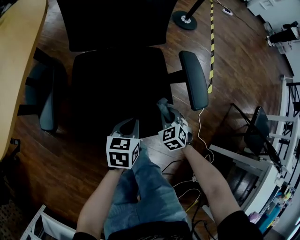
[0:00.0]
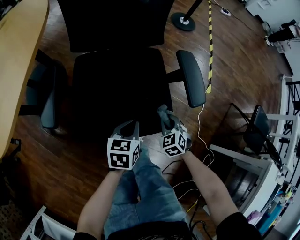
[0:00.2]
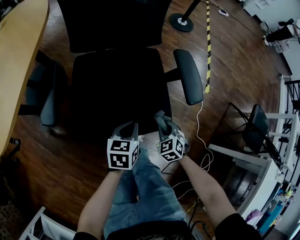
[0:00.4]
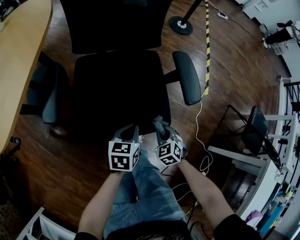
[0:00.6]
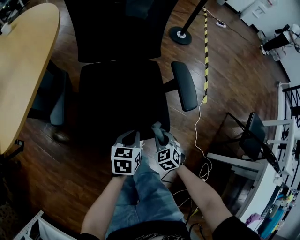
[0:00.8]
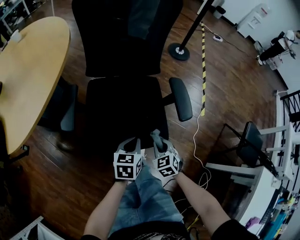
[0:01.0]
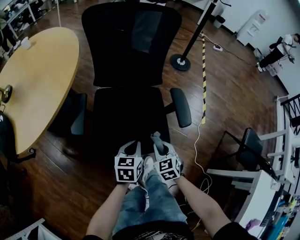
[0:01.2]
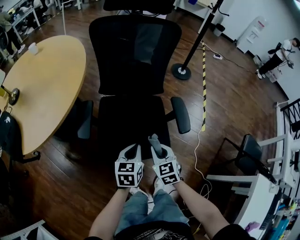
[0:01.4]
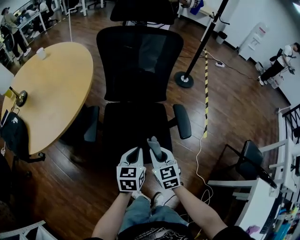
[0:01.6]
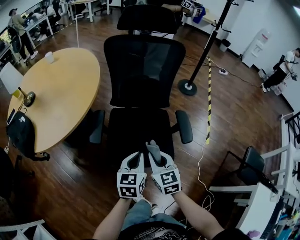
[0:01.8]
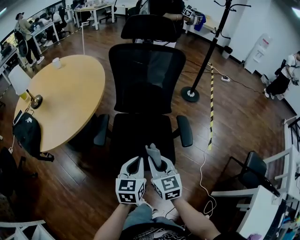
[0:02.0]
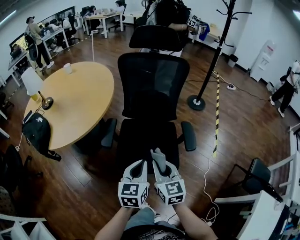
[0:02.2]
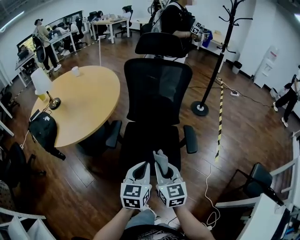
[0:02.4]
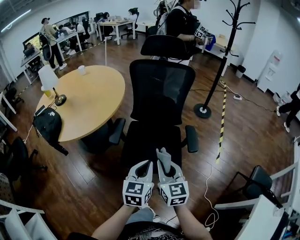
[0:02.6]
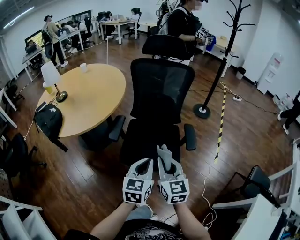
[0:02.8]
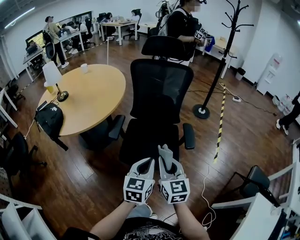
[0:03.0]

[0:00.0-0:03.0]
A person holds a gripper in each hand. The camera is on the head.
0:00.0 to 0:01.6: Both grippers move upward, some 25 cm. The right gripper swivels approximately 30 degrees.
0:01.6 to 0:03.0: The right gripper heads upward and backward, covering roughly 25 cm, and changes its angle by some 20 degrees. The left gripper is displaced backward and upward by roughly 20 cm.

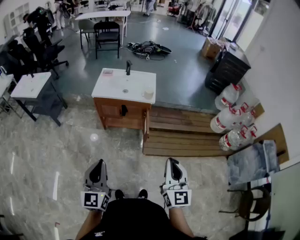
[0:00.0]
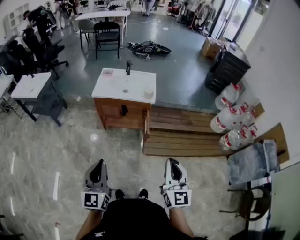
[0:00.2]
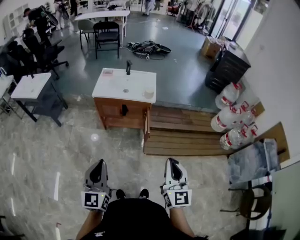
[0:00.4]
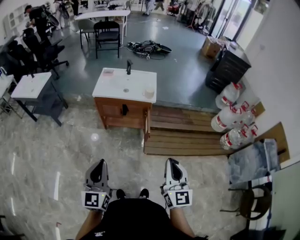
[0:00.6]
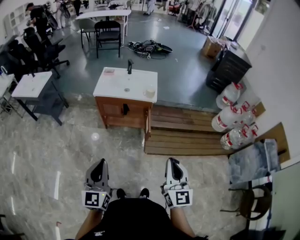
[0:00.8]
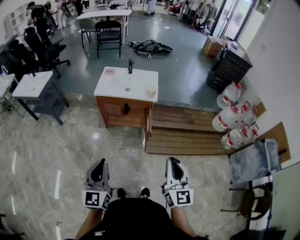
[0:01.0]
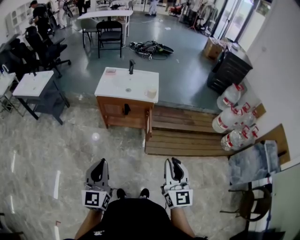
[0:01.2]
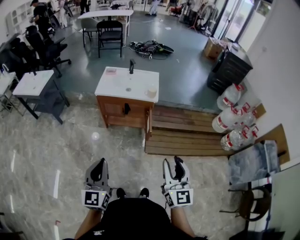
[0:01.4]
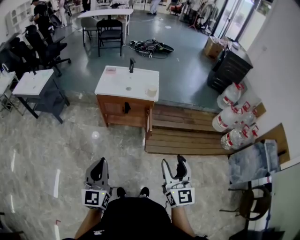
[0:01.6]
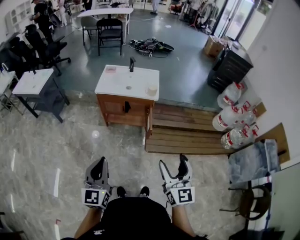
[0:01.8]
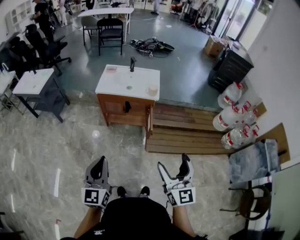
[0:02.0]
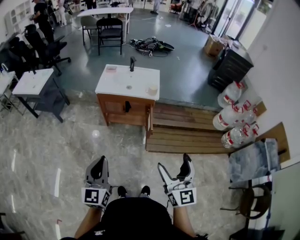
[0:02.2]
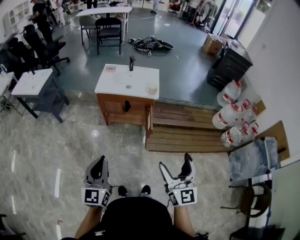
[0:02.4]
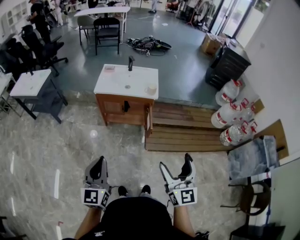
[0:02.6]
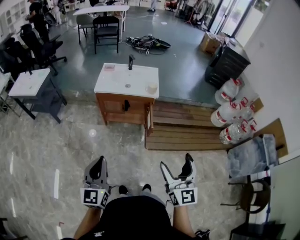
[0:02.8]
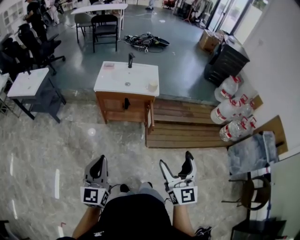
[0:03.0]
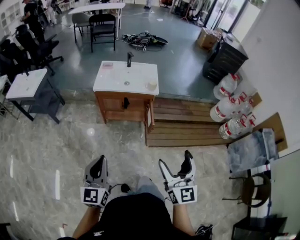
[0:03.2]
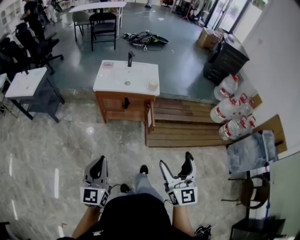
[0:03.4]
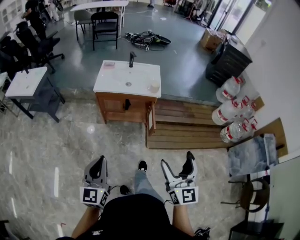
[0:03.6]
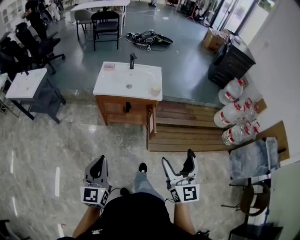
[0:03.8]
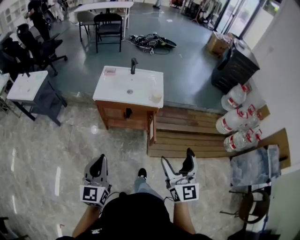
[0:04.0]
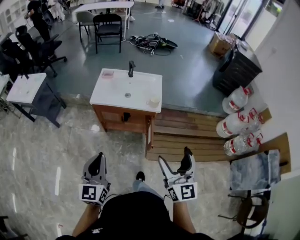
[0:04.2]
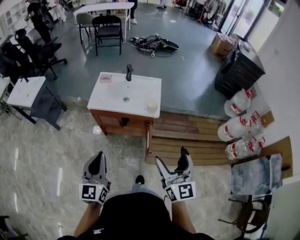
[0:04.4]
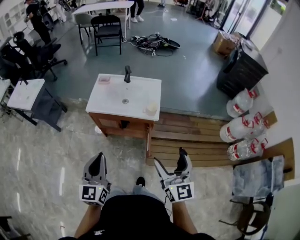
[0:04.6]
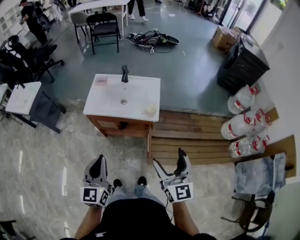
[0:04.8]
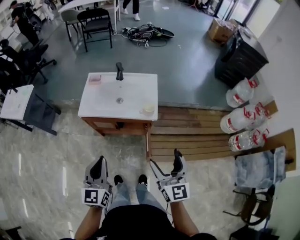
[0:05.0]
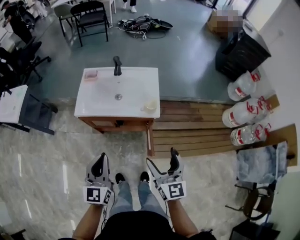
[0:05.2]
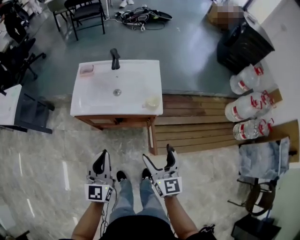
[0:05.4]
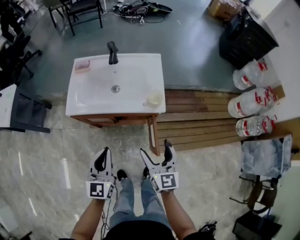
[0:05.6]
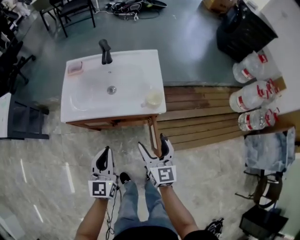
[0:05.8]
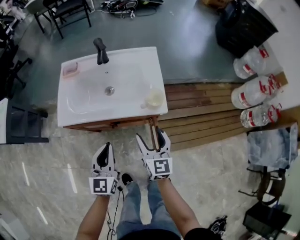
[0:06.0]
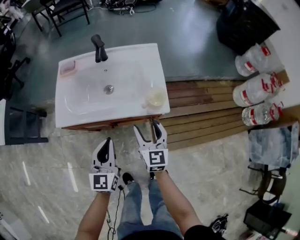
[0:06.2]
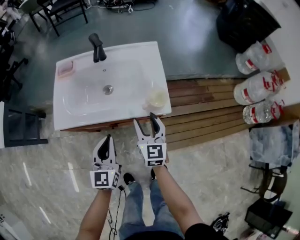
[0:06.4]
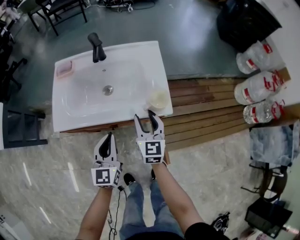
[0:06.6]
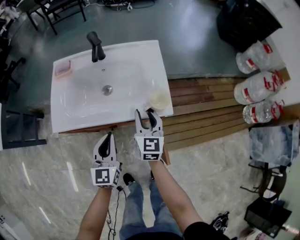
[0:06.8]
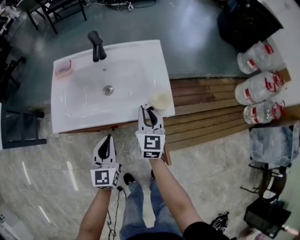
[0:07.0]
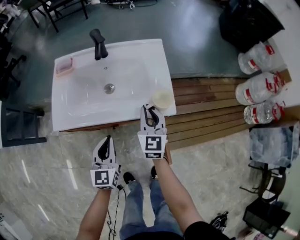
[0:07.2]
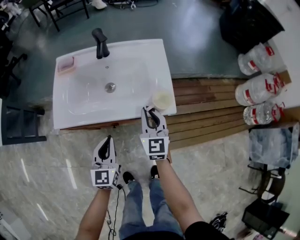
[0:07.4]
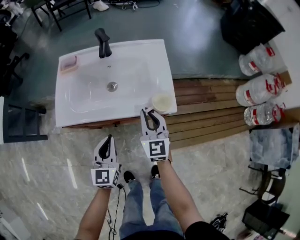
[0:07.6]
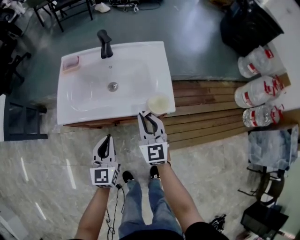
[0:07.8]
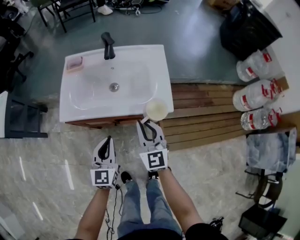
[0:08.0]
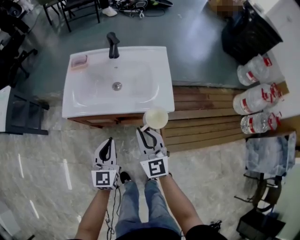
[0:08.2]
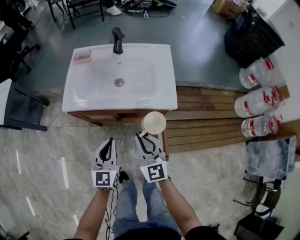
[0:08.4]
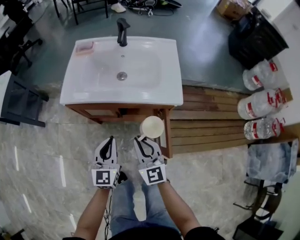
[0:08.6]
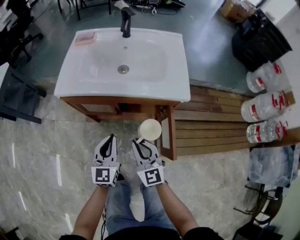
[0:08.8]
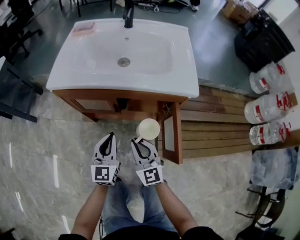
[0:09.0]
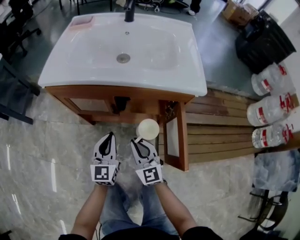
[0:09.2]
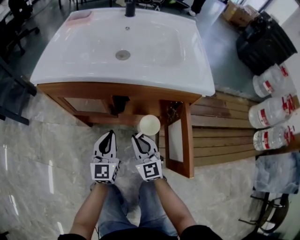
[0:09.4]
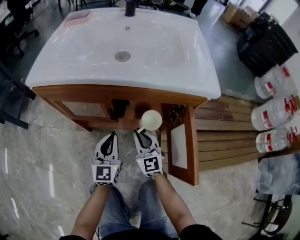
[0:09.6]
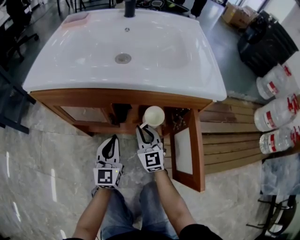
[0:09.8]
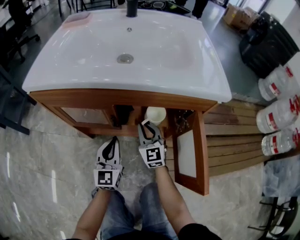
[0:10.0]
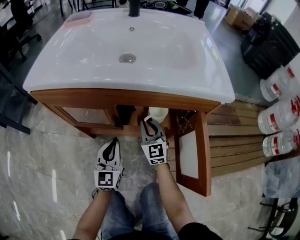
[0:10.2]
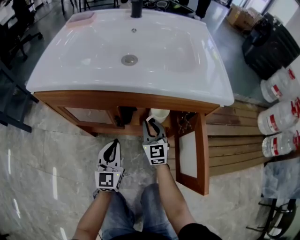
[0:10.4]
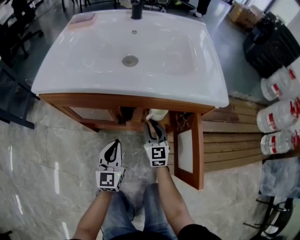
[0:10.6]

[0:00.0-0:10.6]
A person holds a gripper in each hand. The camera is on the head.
0:00.0 to 0:01.6: The right gripper opens its fingers.
0:01.6 to 0:03.0: The right gripper opens up.
0:03.0 to 0:04.6: The grippers both shift forward by approximately 25 cm.
0:04.6 to 0:06.0: The grippers both shift downward and forward by roughly 35 cm.
0:06.0 to 0:07.6: The left gripper moves downward, roughly 5 cm. Meanwhile the right gripper is displaced forward by about 10 cm, and closes its fingers.
0:07.6 to 0:09.0: The left gripper goes about 20 cm downward and backward, while the right gripper travels downward, backward and to the left by approximately 25 cm, and turns by some 20 degrees.
0:09.0 to 0:10.6: The left gripper travels downward and forward by roughly 15 cm. The right gripper goes some 25 cm forward and downward.

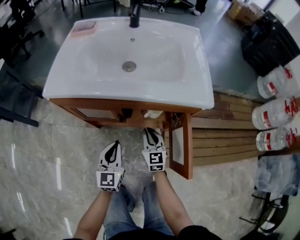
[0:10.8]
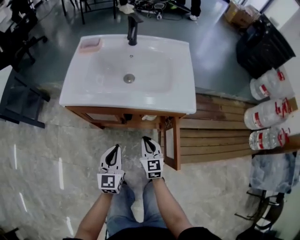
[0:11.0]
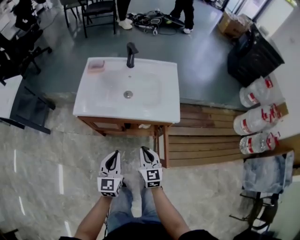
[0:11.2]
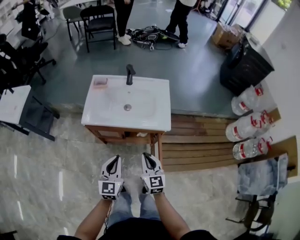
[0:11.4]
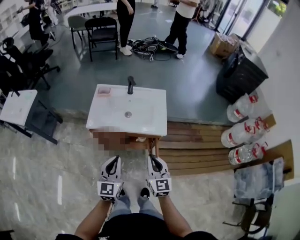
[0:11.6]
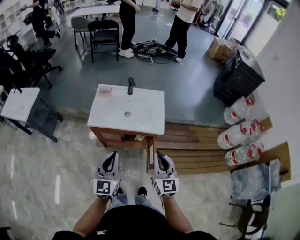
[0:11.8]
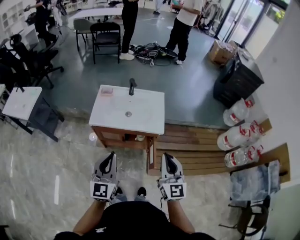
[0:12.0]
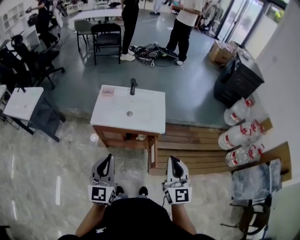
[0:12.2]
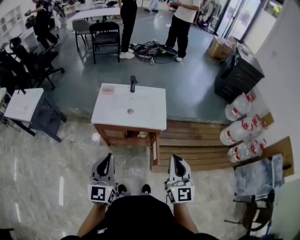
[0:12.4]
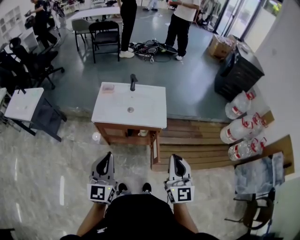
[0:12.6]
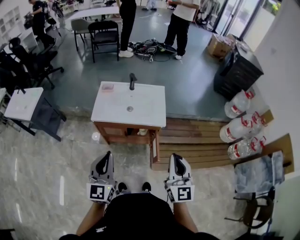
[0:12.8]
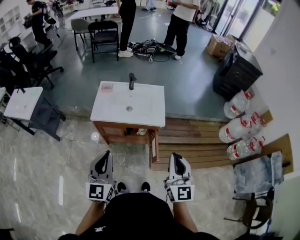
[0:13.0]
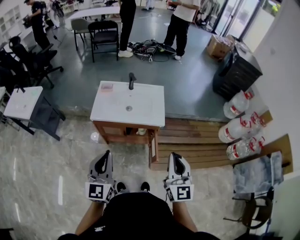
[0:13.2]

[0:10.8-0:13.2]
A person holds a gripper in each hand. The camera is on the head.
0:10.8 to 0:12.0: Both grippers travel together upward, about 60 cm.
0:12.0 to 0:13.2: The right gripper is displaced backward by about 5 cm; the left gripper ends up roughly 5 cm from where it was.

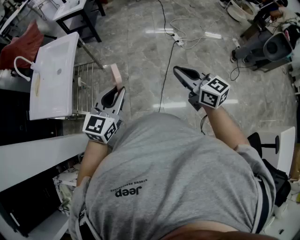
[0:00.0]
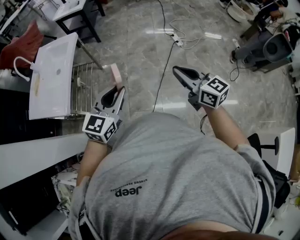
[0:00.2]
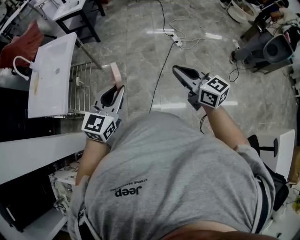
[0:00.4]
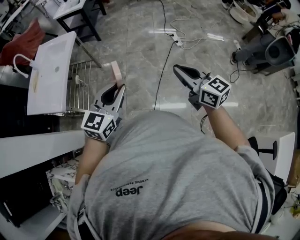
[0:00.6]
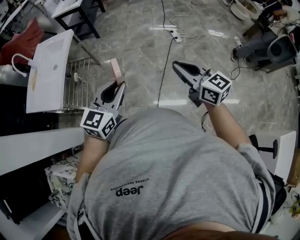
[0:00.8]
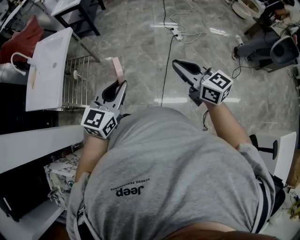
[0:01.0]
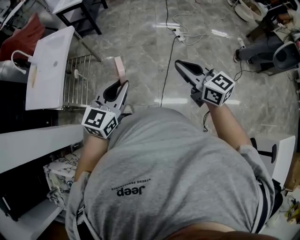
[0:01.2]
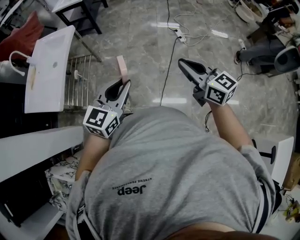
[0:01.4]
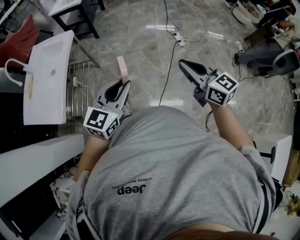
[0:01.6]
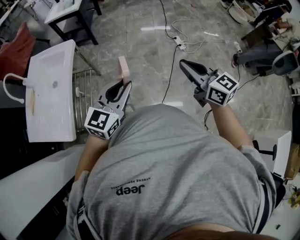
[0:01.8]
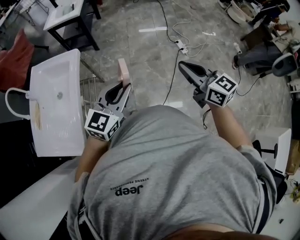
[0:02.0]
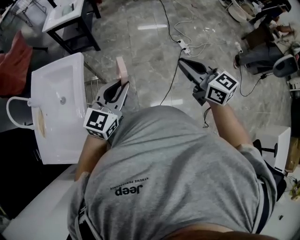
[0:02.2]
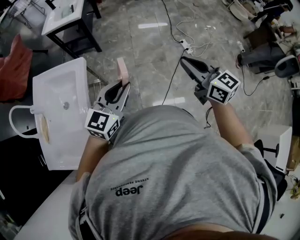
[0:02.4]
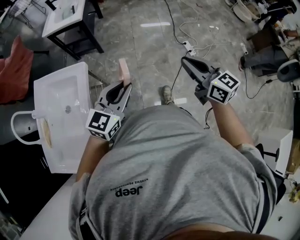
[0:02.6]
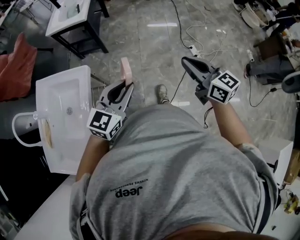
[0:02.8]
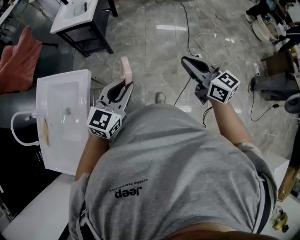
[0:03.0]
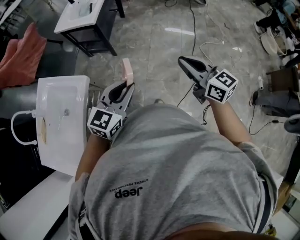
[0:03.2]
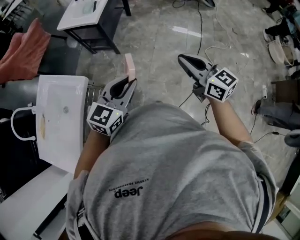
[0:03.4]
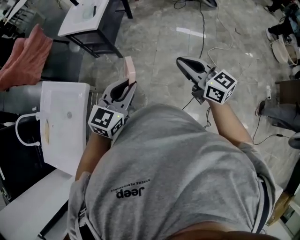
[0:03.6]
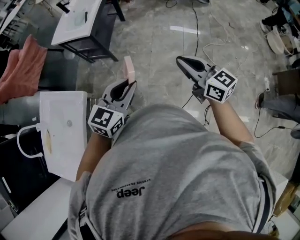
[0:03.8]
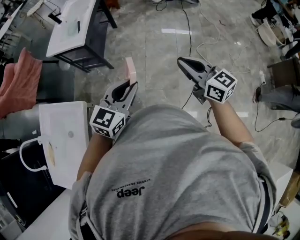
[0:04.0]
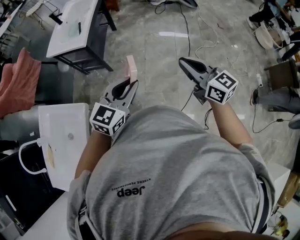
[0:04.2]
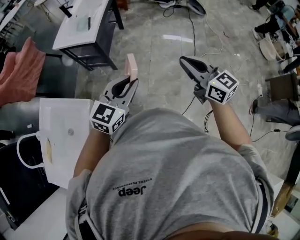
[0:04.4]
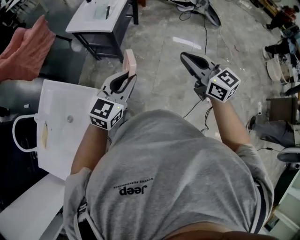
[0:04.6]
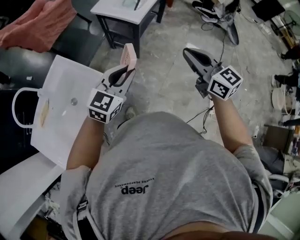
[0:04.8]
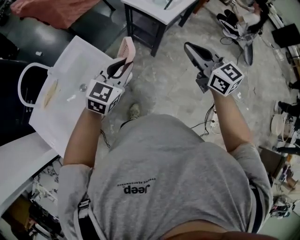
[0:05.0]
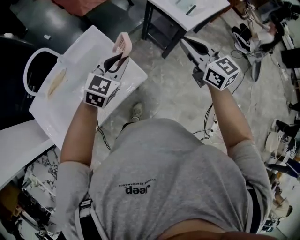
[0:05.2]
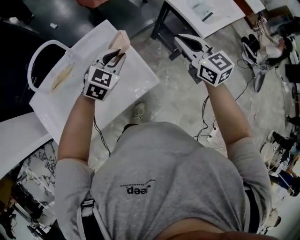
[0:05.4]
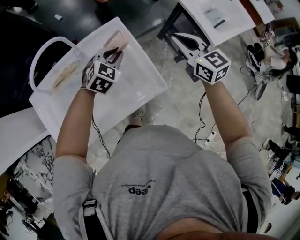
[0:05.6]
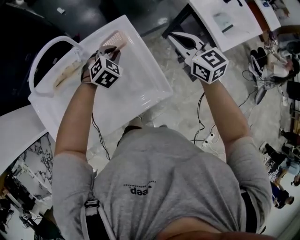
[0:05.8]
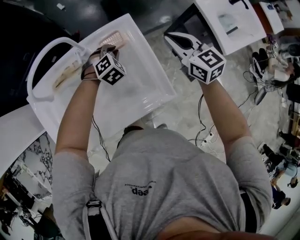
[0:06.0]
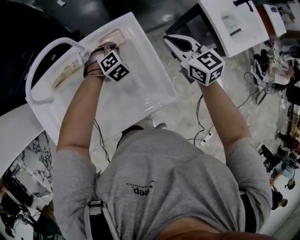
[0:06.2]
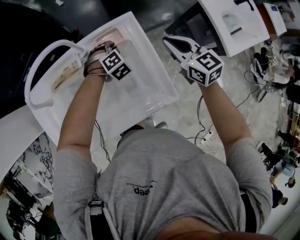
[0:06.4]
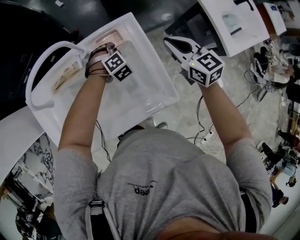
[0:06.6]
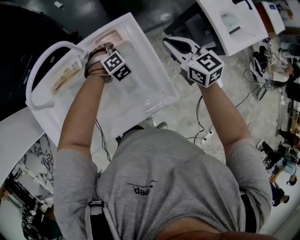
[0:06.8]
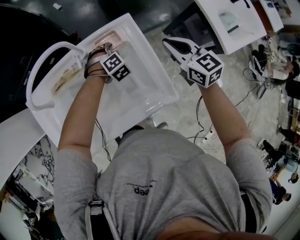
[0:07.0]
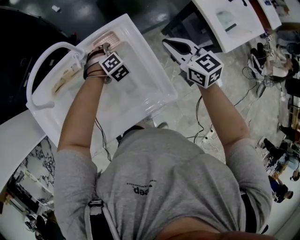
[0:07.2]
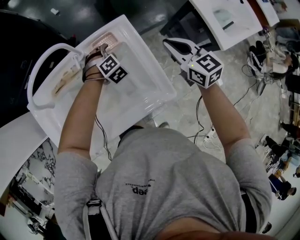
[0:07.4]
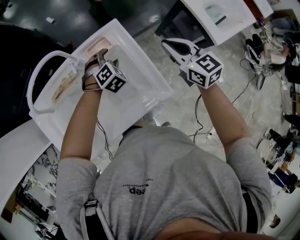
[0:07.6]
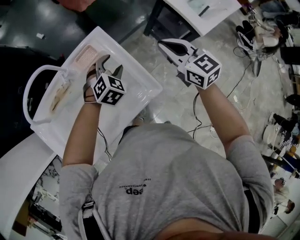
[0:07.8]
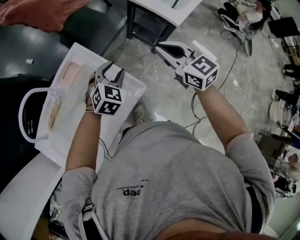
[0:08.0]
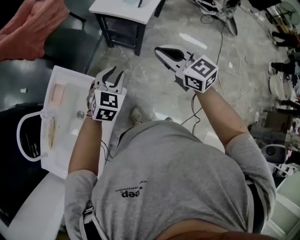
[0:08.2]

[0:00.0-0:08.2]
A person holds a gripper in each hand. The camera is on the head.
0:00.0 to 0:01.6: The grippers both shift forward by approximately 10 cm.
0:01.6 to 0:03.2: The pair of grippers is taken forward, about 50 cm.
0:03.2 to 0:05.0: The left gripper moves about 35 cm, and turns by approximately 30 degrees; the right gripper shifts by about 40 cm, and changes its angle by some 30 degrees.
0:05.0 to 0:06.6: The left gripper changes place by about 50 cm, and tips its fingers downward by approximately 40 degrees. Meanwhile the right gripper ends up roughly 40 cm from where it was, and rotates about 30 degrees.
0:06.6 to 0:08.2: The right gripper ends up about 35 cm from where it was, and turns by roughly 30 degrees, while the left gripper shifts by about 40 cm, changes its angle by some 50 degrees, and opens, then closes once more.
